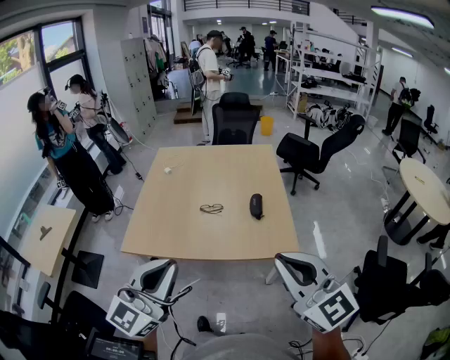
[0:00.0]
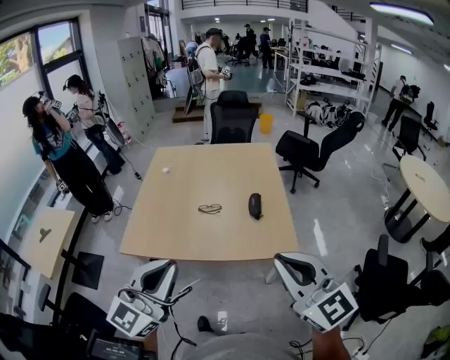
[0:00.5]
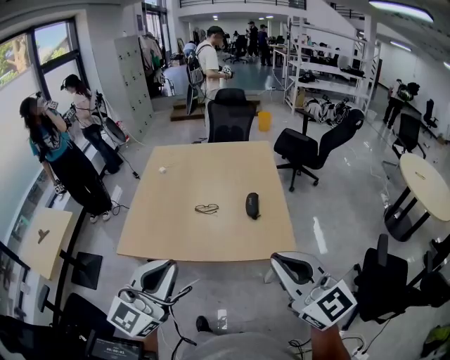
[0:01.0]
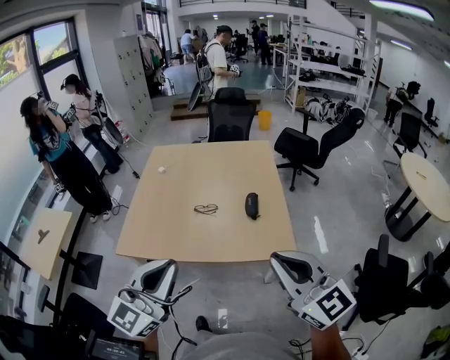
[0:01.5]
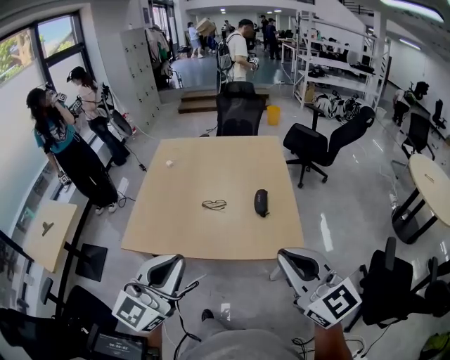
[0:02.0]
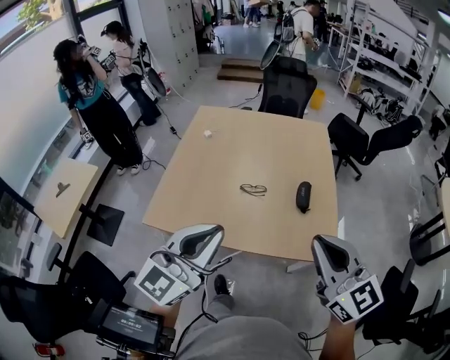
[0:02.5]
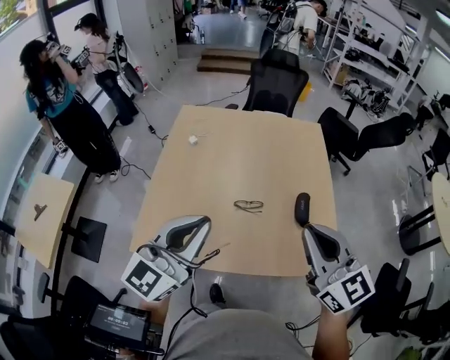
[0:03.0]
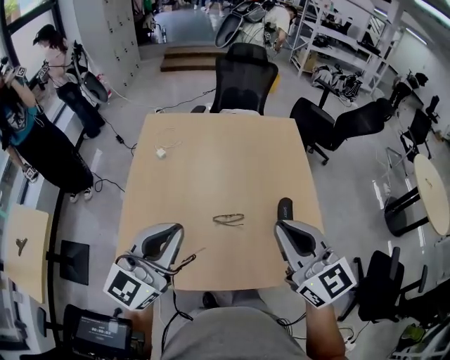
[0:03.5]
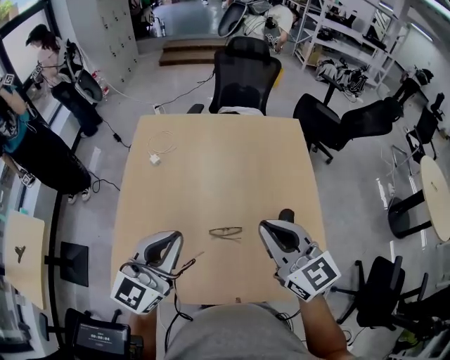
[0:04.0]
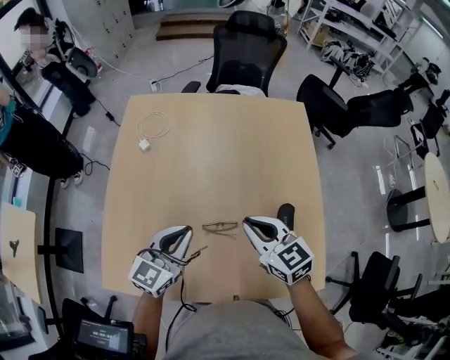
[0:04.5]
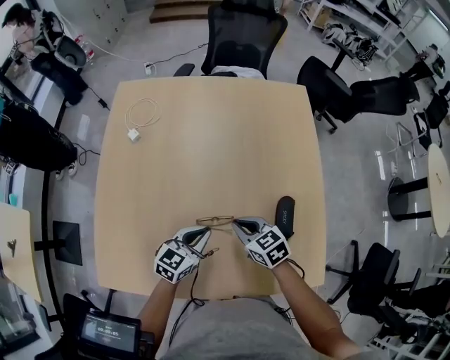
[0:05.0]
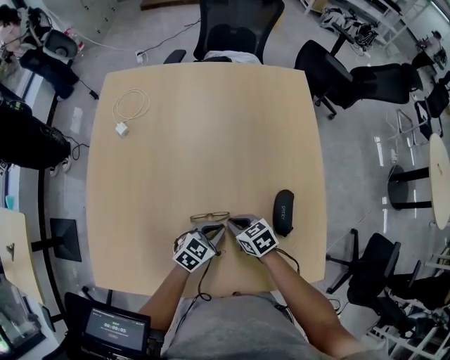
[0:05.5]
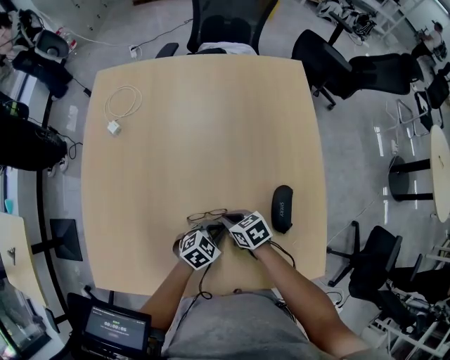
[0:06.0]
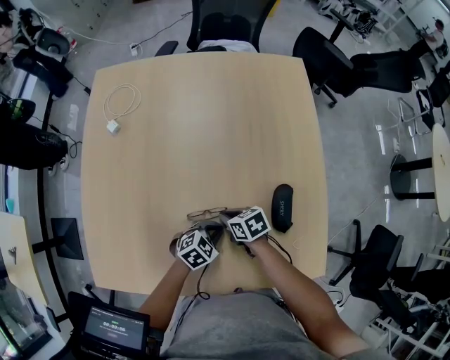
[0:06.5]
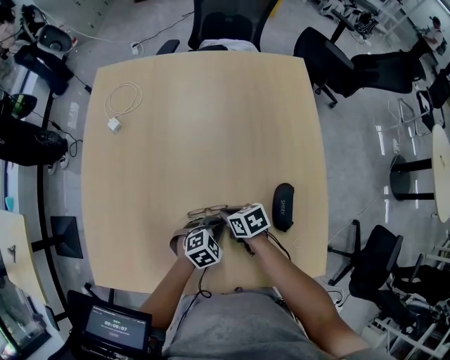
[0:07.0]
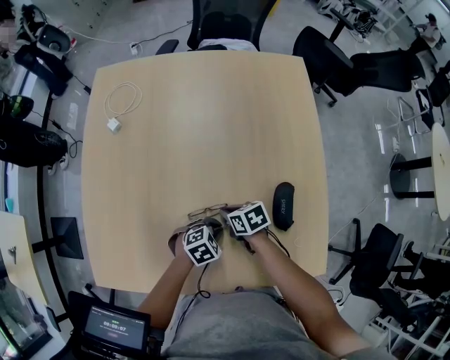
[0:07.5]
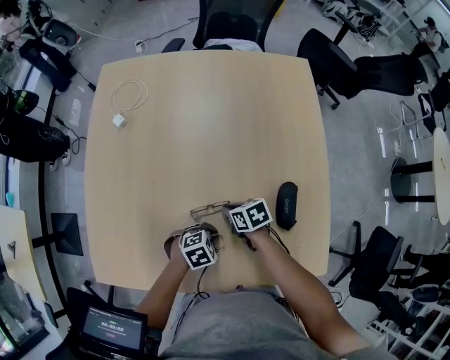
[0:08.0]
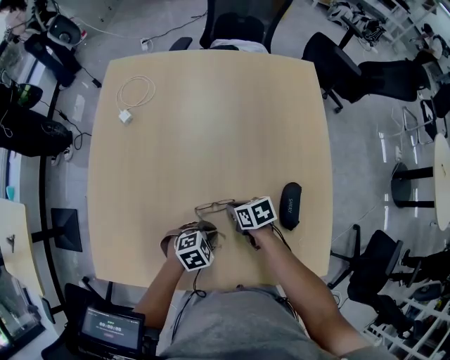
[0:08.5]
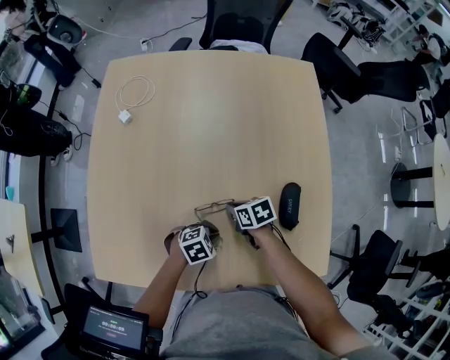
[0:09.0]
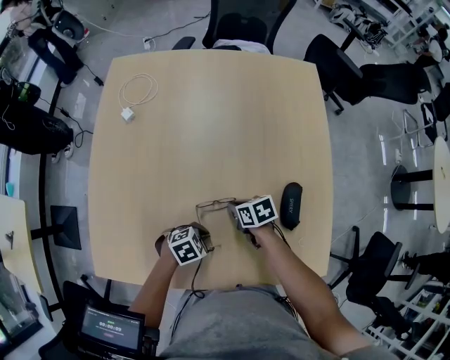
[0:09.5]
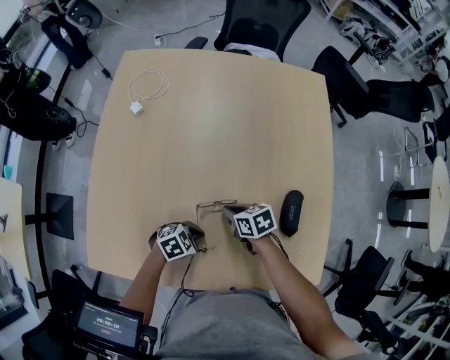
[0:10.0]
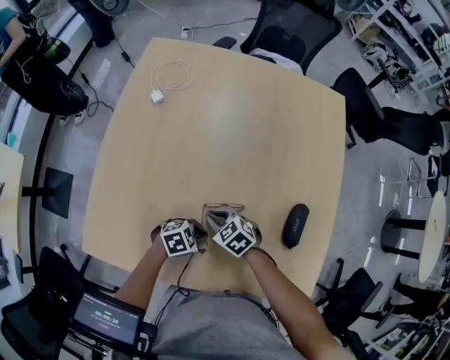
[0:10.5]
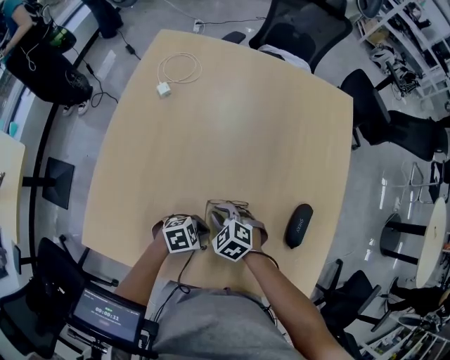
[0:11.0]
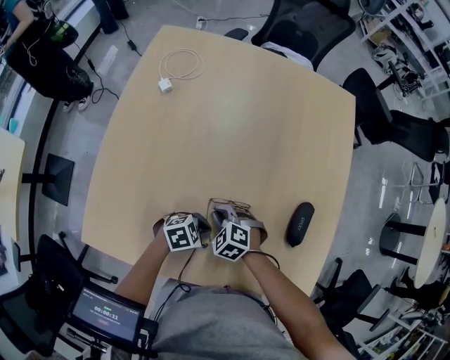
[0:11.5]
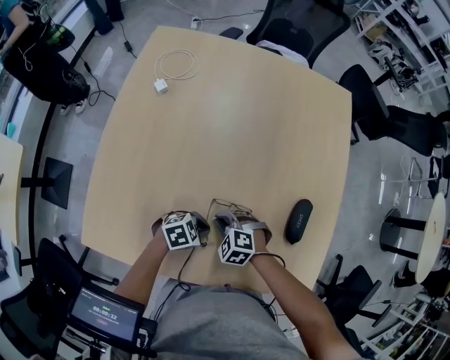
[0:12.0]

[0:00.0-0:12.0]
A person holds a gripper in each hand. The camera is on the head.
0:00.0 to 0:02.0: The two grippers go roughly 5 cm forward.
0:02.0 to 0:04.0: The two grippers travel together, forward, roughly 50 cm.
0:04.0 to 0:06.0: The two grippers go some 40 cm downward. The right gripper points its fingers about 40 degrees further downward. The left gripper tilts its fingers about 50 degrees downward.
0:06.0 to 0:08.0: The left gripper changes place by roughly 5 cm, and rotates approximately 20 degrees.
0:08.0 to 0:10.0: The left gripper ends up some 5 cm from where it was.
0:10.0 to 0:12.0: The right gripper shifts by roughly 10 cm, and twists about 70 degrees counterclockwise, seen from behind.

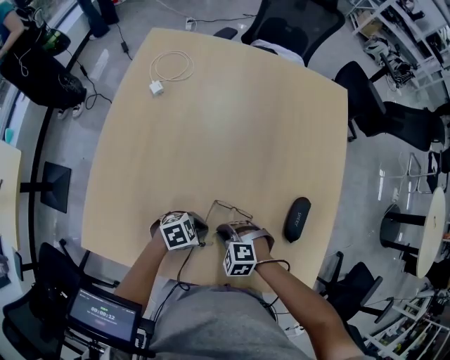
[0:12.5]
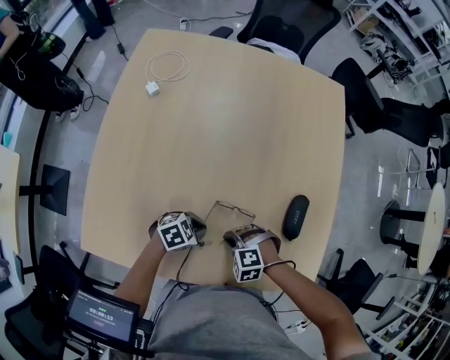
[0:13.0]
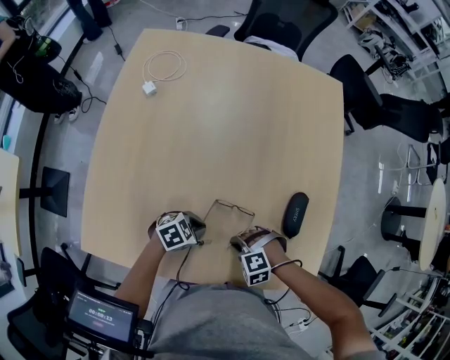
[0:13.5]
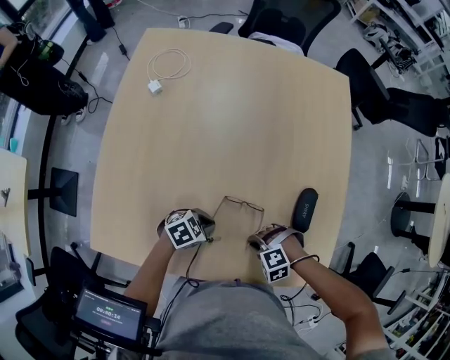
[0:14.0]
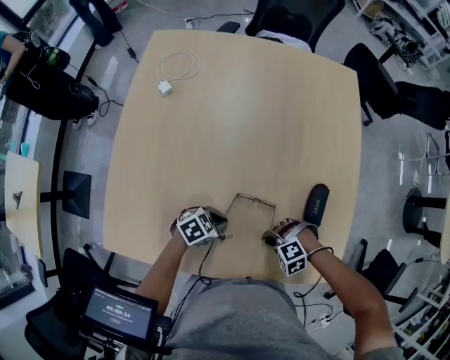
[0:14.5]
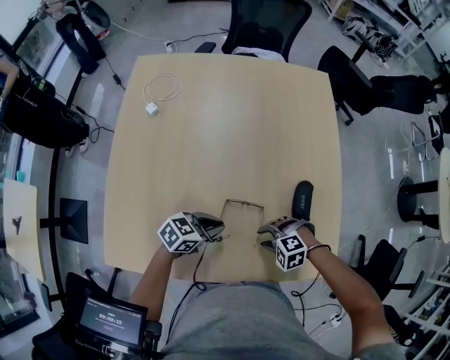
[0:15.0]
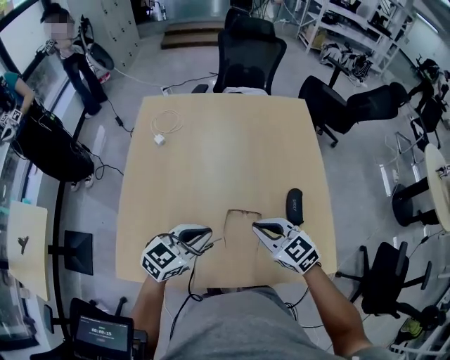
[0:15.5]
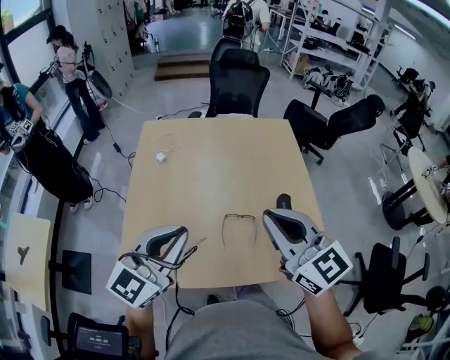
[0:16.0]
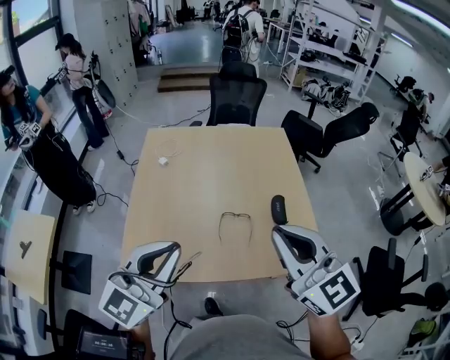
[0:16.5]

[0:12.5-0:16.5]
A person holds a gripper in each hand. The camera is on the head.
0:12.5 to 0:14.5: The right gripper changes place by approximately 10 cm, and rotates approximately 20 degrees.
0:14.5 to 0:16.5: Both grippers move upward, approximately 60 cm. The left gripper angles its fingers upward, by roughly 50 degrees; the right gripper points its fingers some 70 degrees further upward, and opens, then closes again.

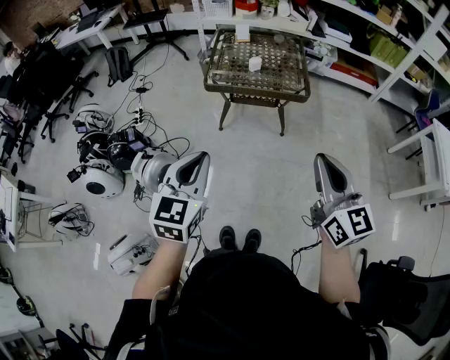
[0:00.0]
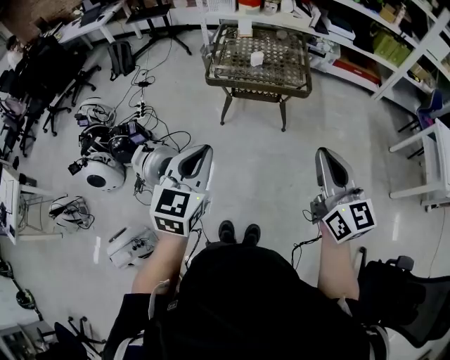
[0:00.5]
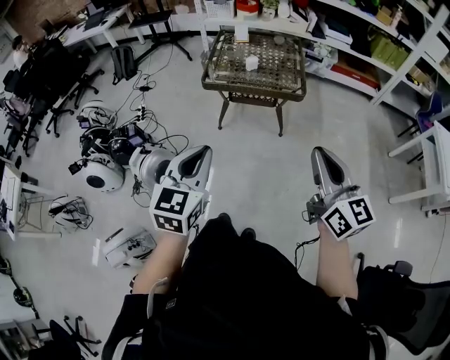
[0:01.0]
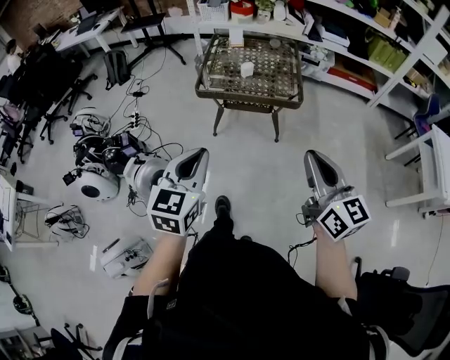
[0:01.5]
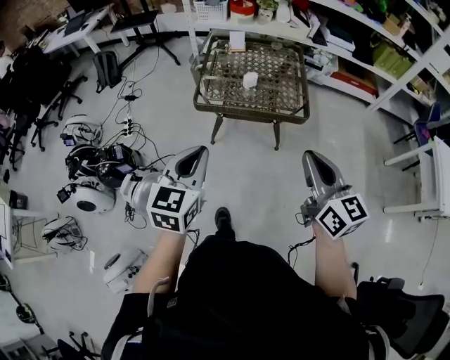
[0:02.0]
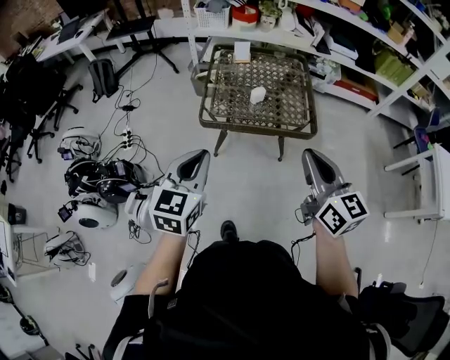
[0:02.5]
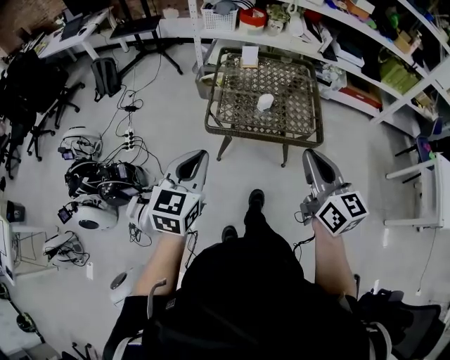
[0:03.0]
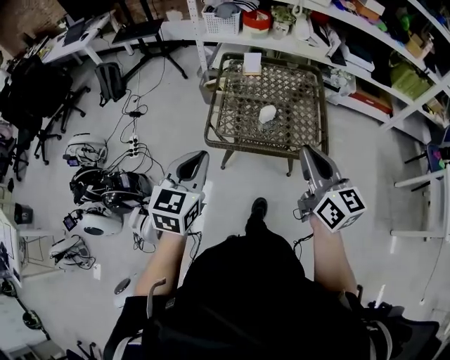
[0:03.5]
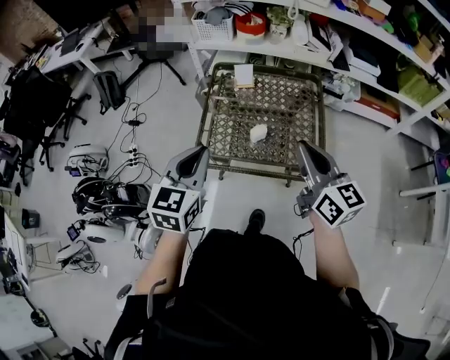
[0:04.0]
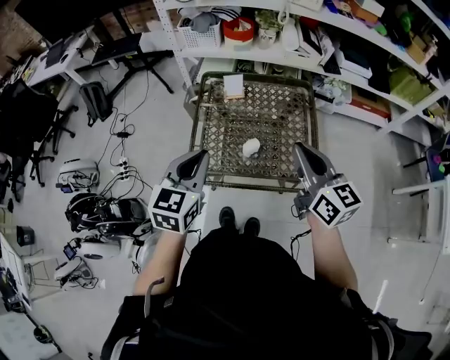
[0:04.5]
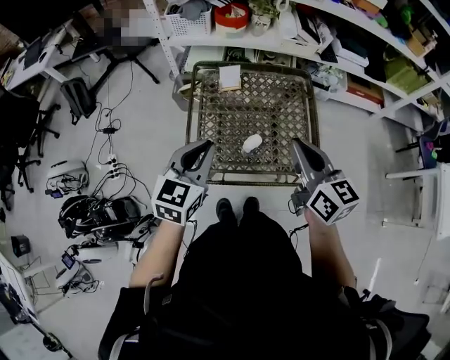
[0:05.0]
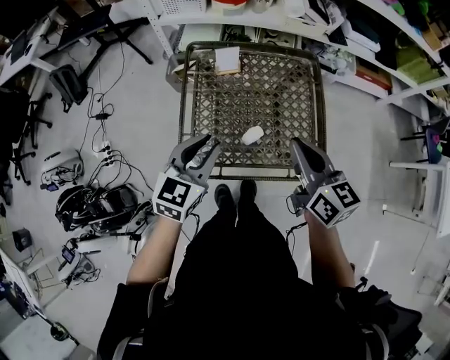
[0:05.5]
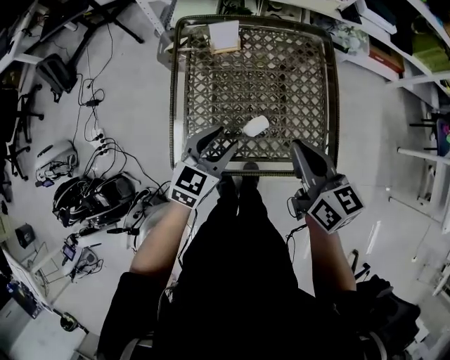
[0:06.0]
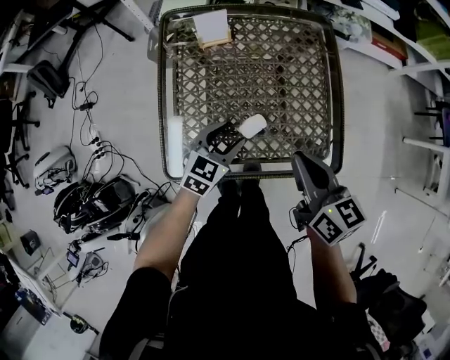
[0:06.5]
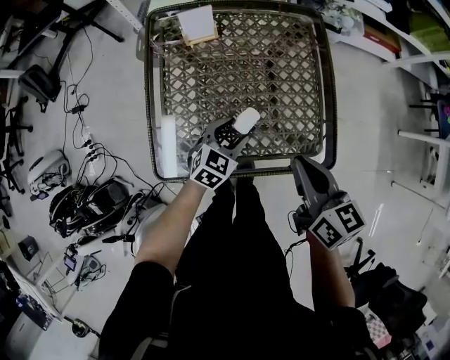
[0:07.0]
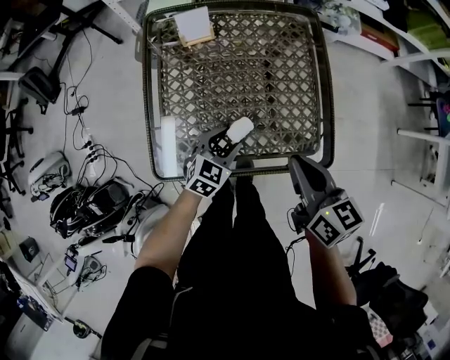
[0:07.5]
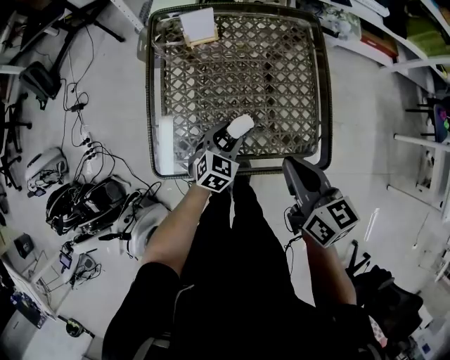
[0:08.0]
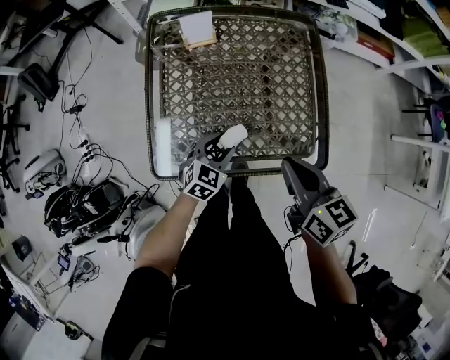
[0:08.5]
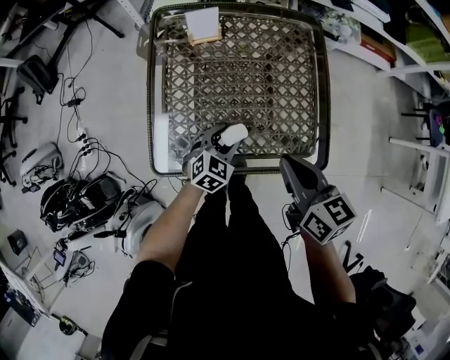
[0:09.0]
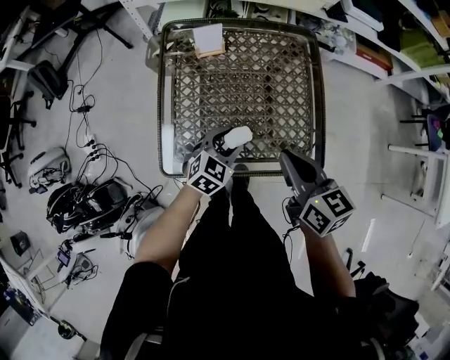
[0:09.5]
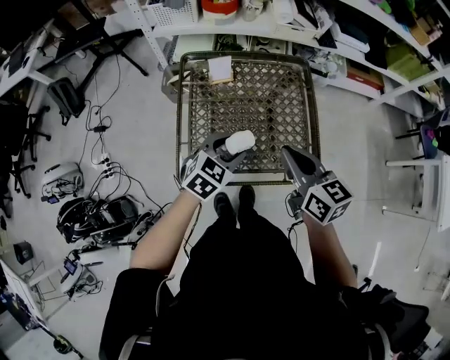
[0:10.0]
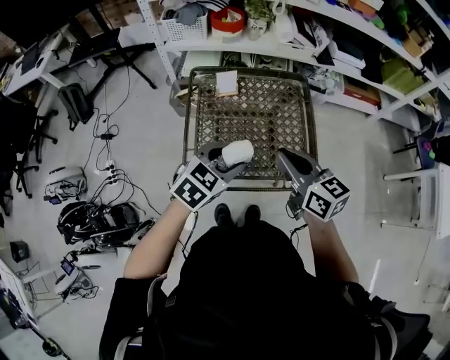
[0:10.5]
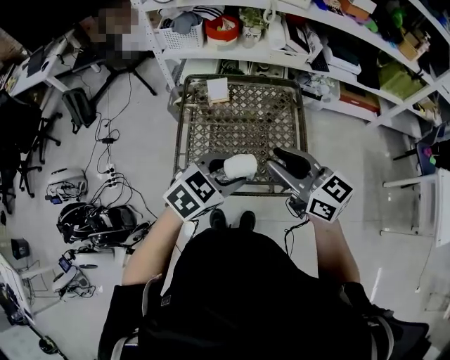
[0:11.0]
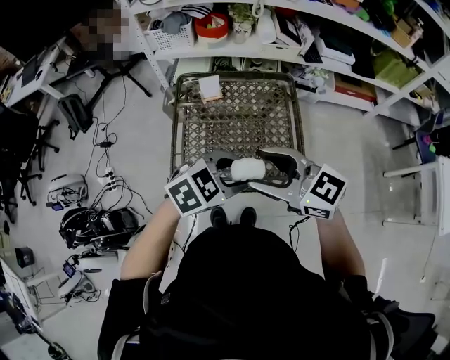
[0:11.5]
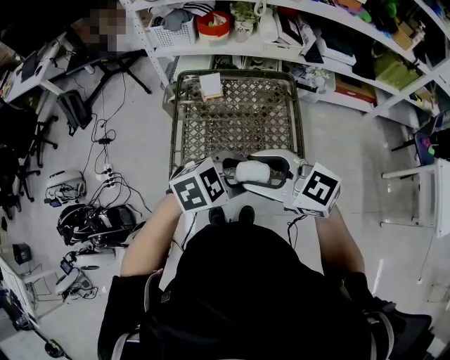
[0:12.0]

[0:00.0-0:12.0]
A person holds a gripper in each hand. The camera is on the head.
0:00.0 to 0:02.0: The two grippers go roughly 15 cm forward.
0:02.0 to 0:04.0: Both grippers move forward, about 30 cm.
0:04.0 to 0:06.0: The grippers both shift downward and forward by about 25 cm. The left gripper turns by about 30 degrees, and opens; the right gripper changes its angle by approximately 20 degrees.
0:06.0 to 0:08.0: The left gripper shifts about 15 cm downward and to the right; the right gripper moves roughly 5 cm.
0:08.0 to 0:10.0: The right gripper shifts approximately 10 cm upward; the left gripper heads upward, covering approximately 20 cm.
0:10.0 to 0:12.0: The left gripper shifts by some 15 cm, and rotates approximately 30 degrees. The right gripper moves some 10 cm, rotates about 50 degrees, and opens.
